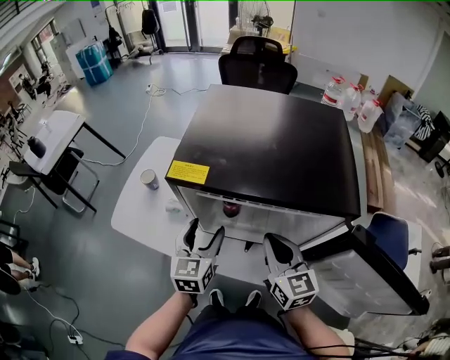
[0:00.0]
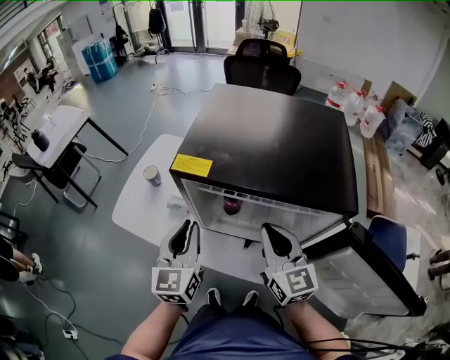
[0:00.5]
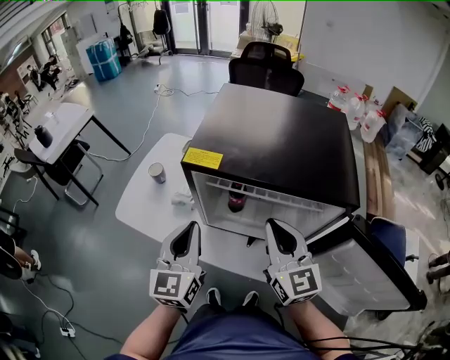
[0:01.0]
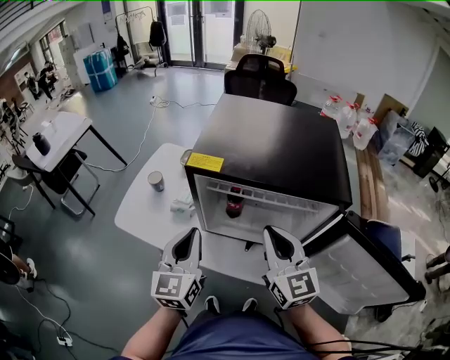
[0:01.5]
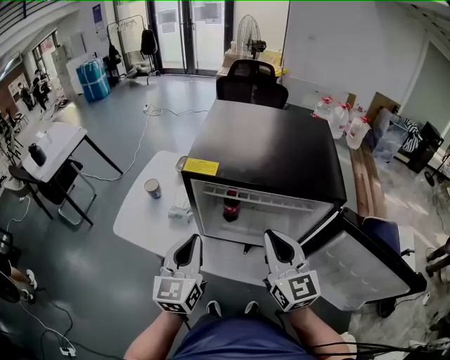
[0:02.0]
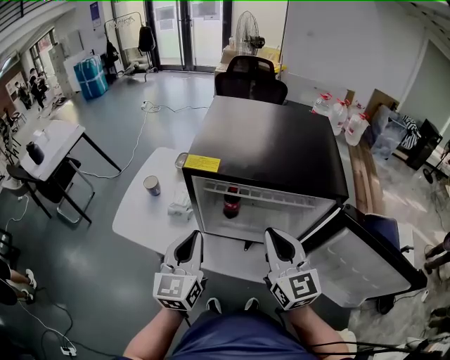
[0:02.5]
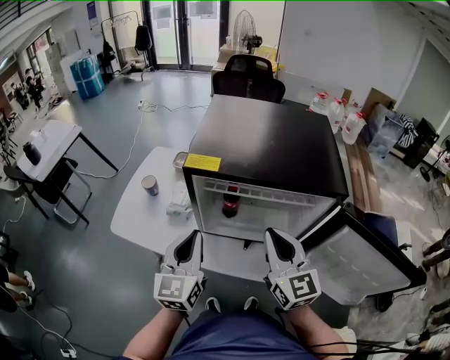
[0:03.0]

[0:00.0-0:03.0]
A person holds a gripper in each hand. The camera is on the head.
0:00.0 to 0:01.5: The right gripper travels upward by about 10 cm; the left gripper moves upward, backward and to the left, roughly 15 cm, and closes its fingers.
0:01.5 to 0:03.0: The two grippers keep their place.

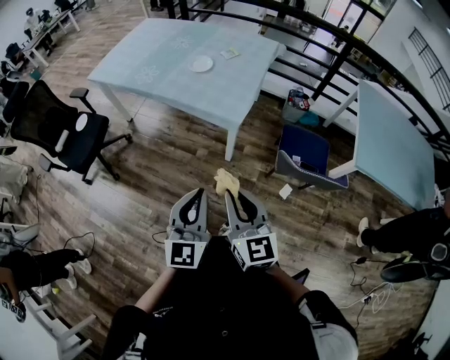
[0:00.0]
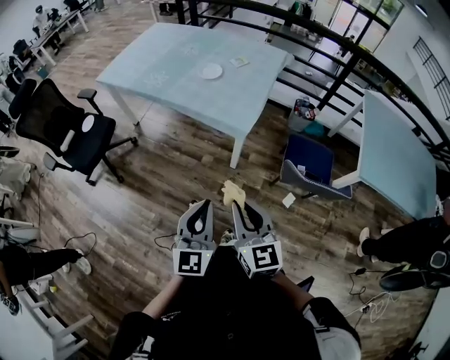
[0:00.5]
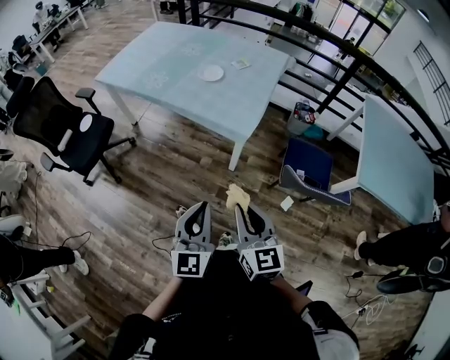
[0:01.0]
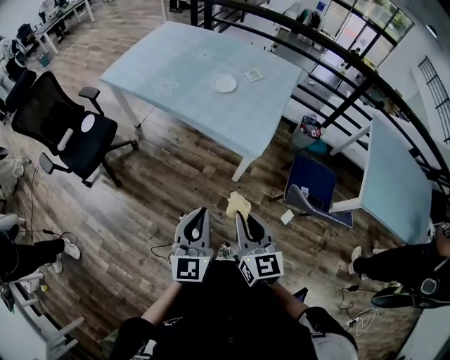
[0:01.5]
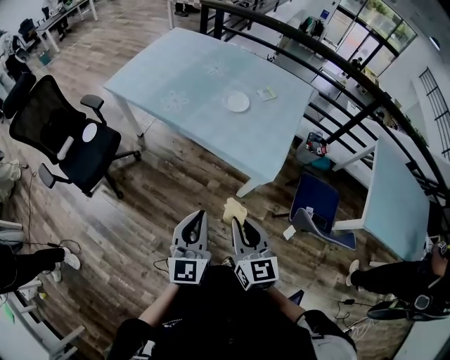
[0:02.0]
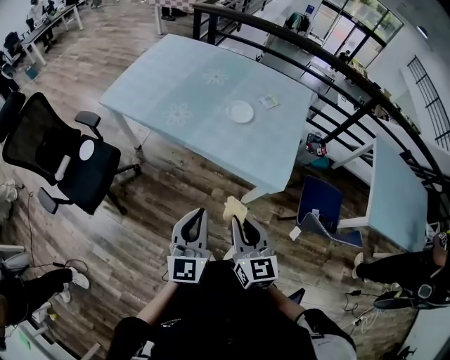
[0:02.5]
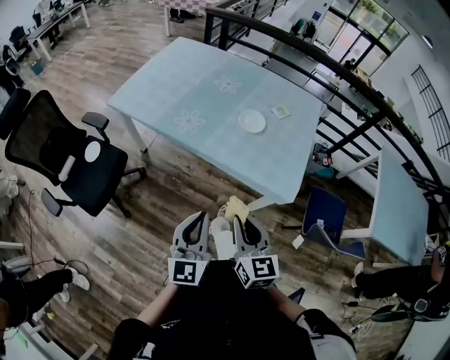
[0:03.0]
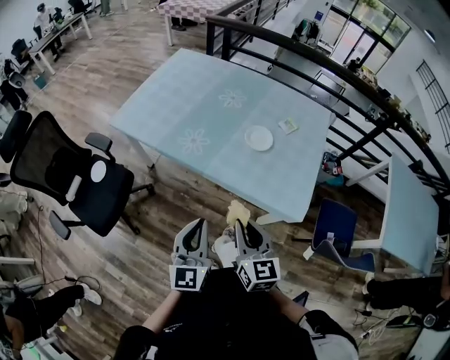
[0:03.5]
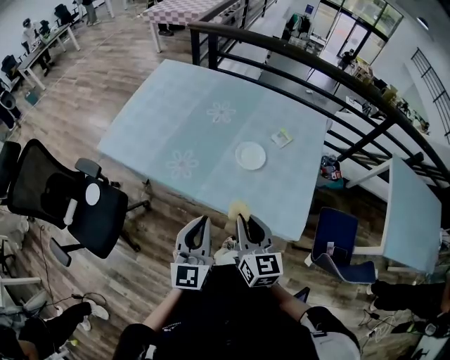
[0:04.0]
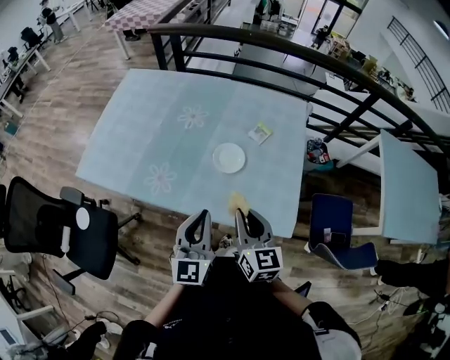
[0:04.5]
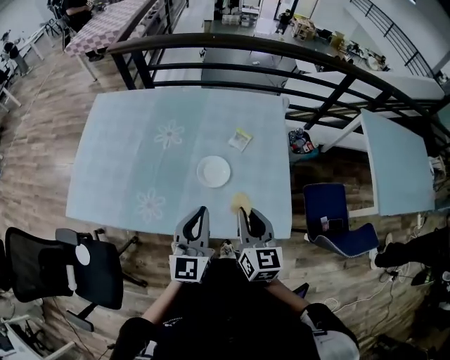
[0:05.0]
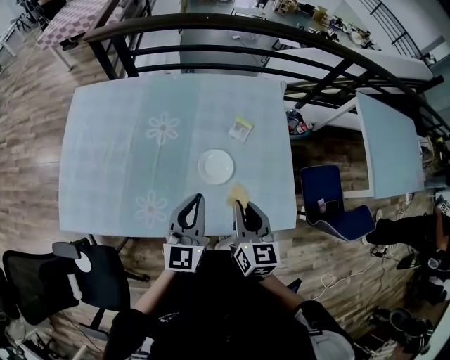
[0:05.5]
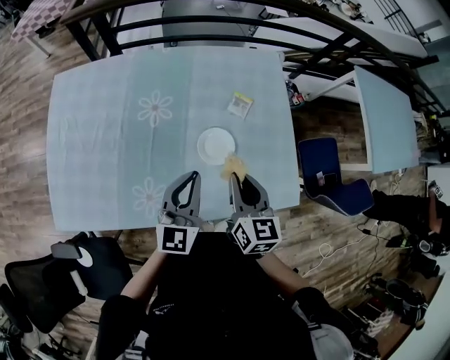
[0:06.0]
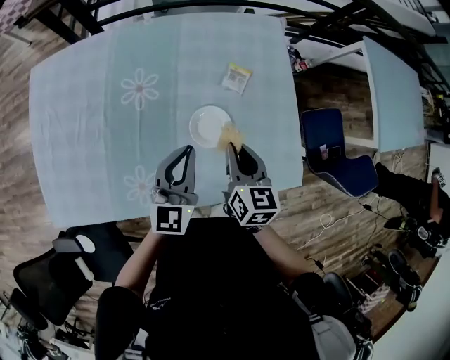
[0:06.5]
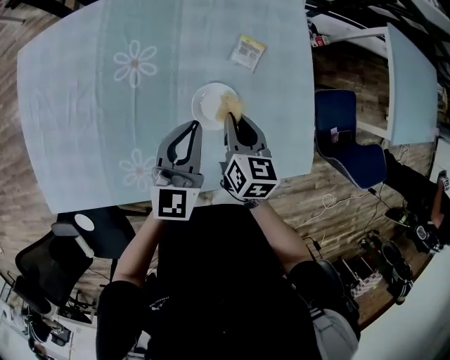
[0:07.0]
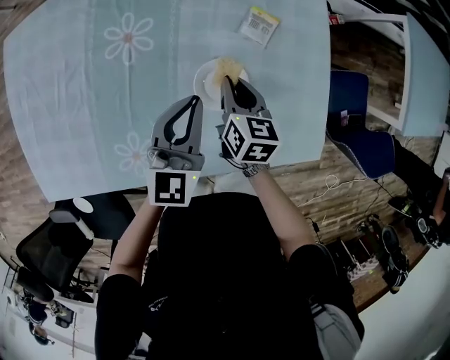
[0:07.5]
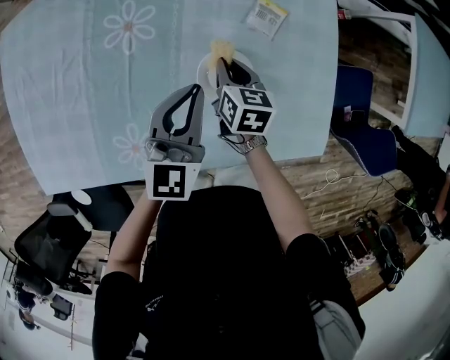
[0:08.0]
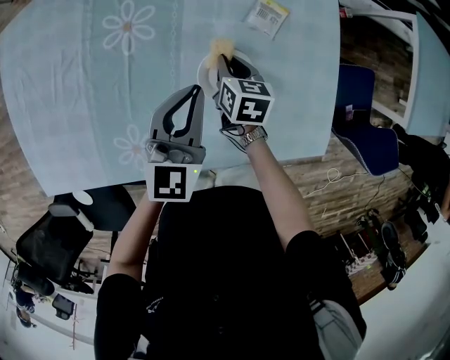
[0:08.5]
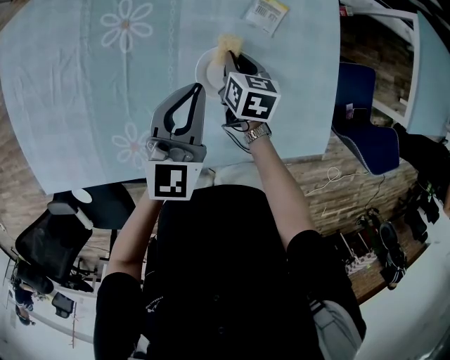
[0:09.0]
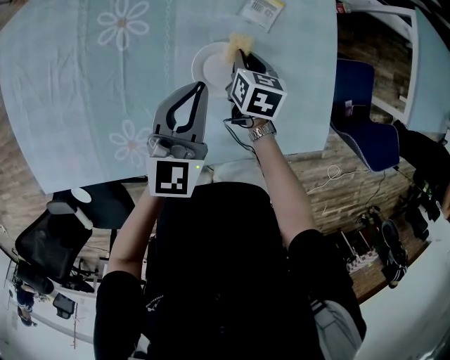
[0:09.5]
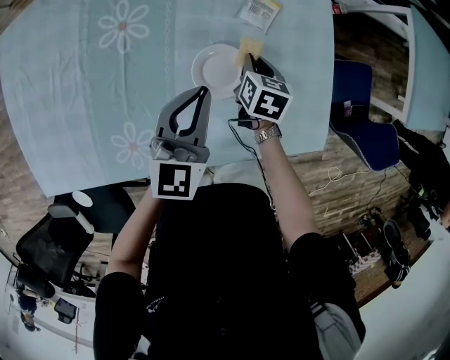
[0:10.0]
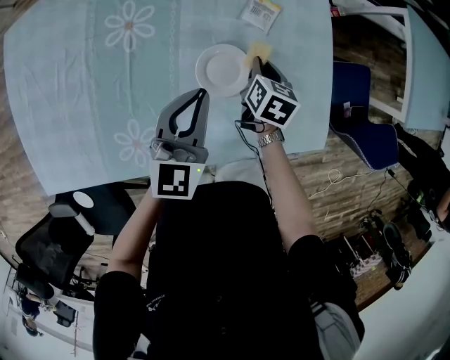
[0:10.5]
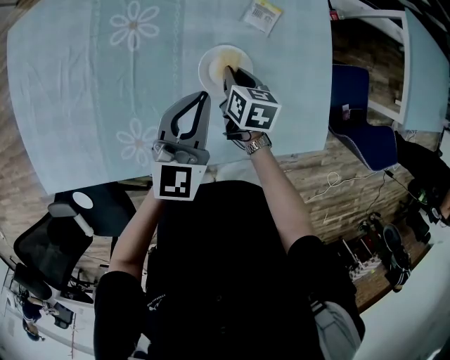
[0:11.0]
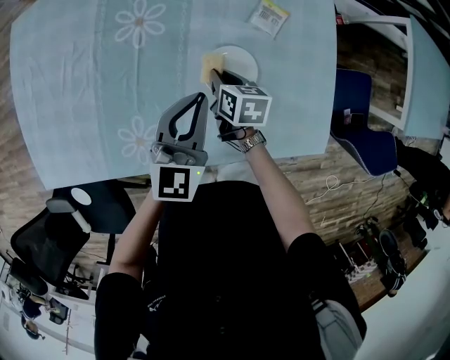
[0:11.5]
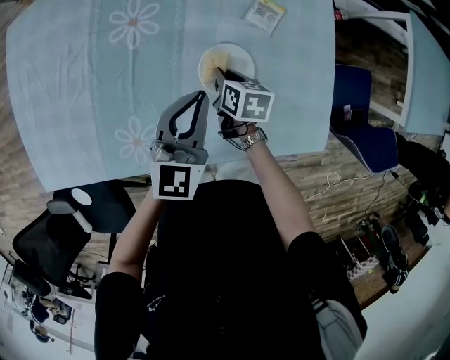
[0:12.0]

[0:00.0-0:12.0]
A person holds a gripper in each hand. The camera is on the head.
0:00.0 to 0:02.0: Both grippers travel together forward and to the left, about 20 cm.
0:02.0 to 0:04.0: Both grippers move forward, some 30 cm.
0:04.0 to 0:06.0: The left gripper moves approximately 30 cm, and turns by approximately 30 degrees, while the right gripper shifts by some 25 cm, and changes its angle by about 30 degrees.
0:06.0 to 0:08.0: The right gripper shifts approximately 30 cm downward and forward, and changes its angle by roughly 20 degrees. Meanwhile the left gripper is displaced downward and forward by about 15 cm.
0:08.0 to 0:10.0: The right gripper shifts some 10 cm to the right.
0:10.0 to 0:12.0: The right gripper heads to the left, covering roughly 10 cm.

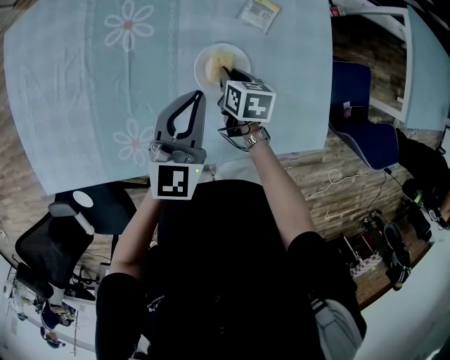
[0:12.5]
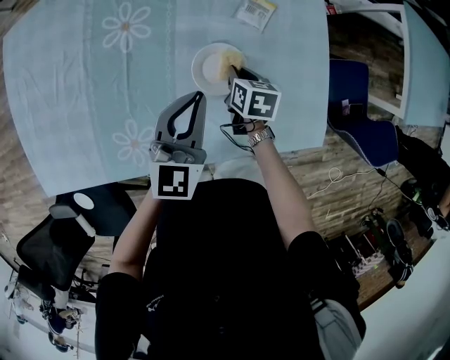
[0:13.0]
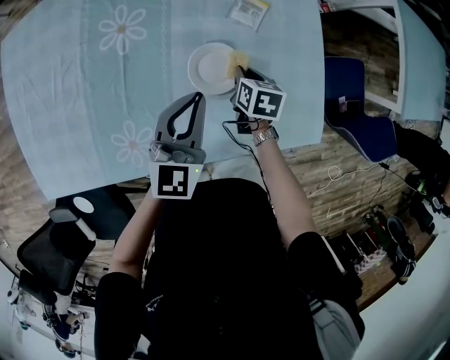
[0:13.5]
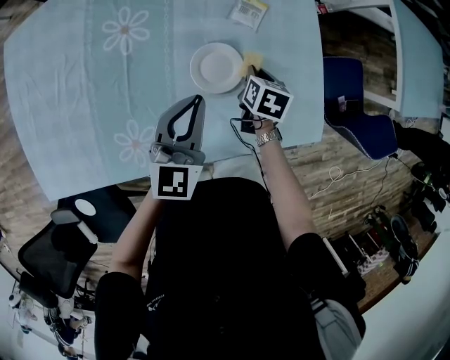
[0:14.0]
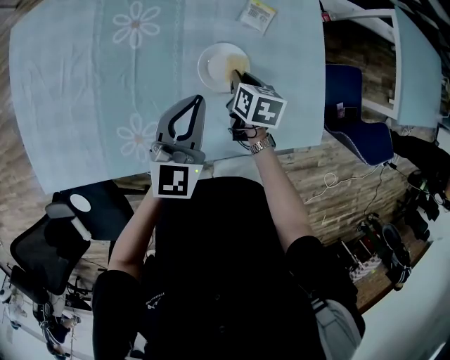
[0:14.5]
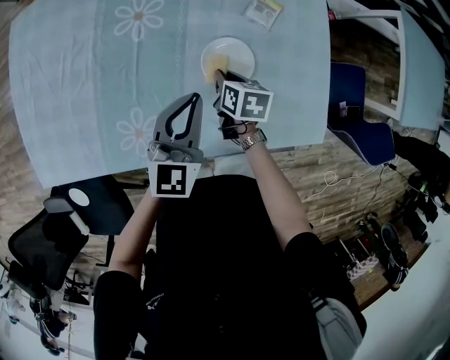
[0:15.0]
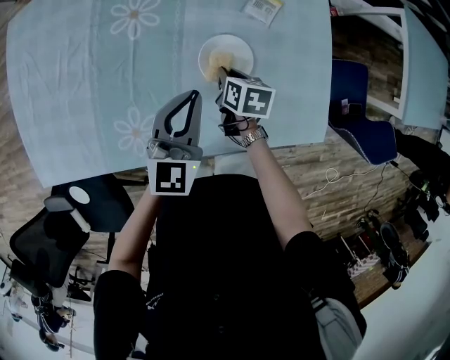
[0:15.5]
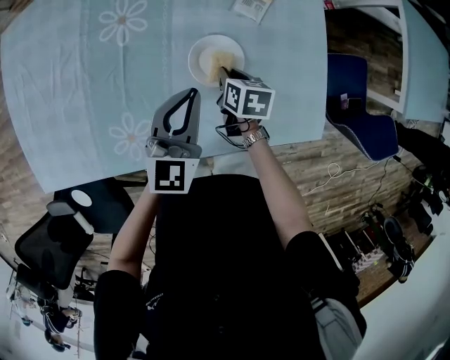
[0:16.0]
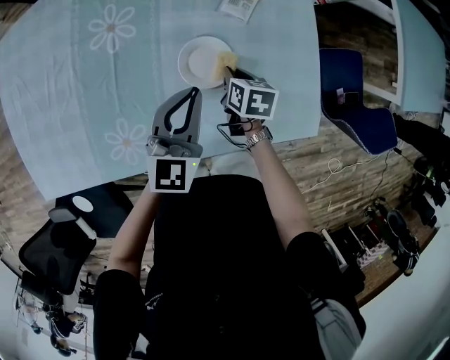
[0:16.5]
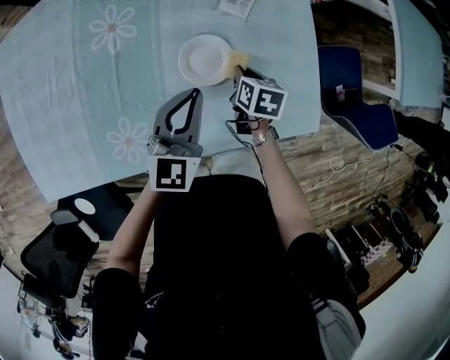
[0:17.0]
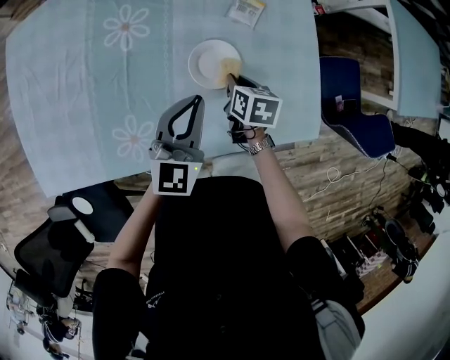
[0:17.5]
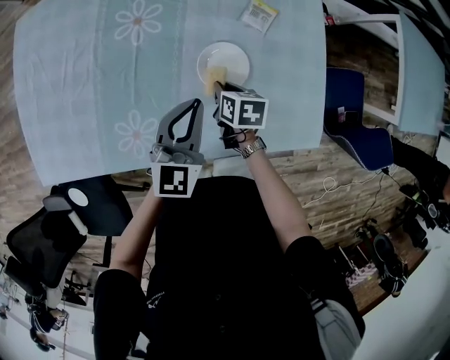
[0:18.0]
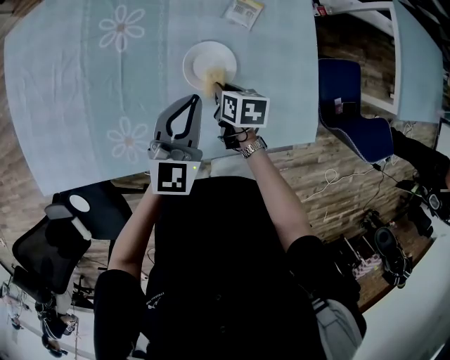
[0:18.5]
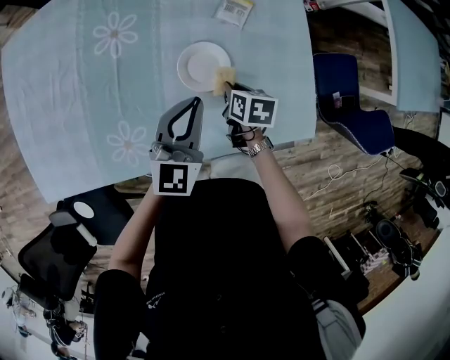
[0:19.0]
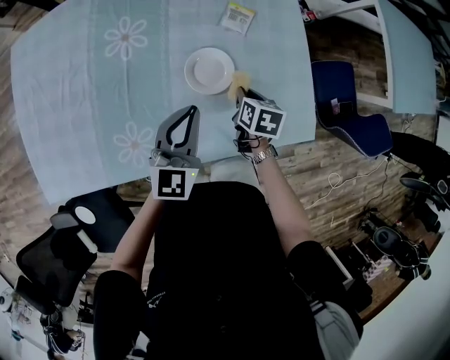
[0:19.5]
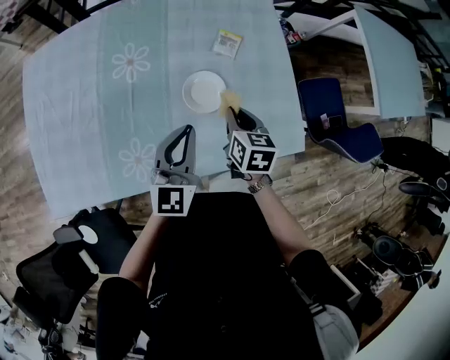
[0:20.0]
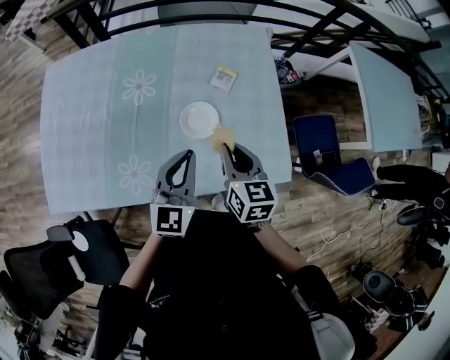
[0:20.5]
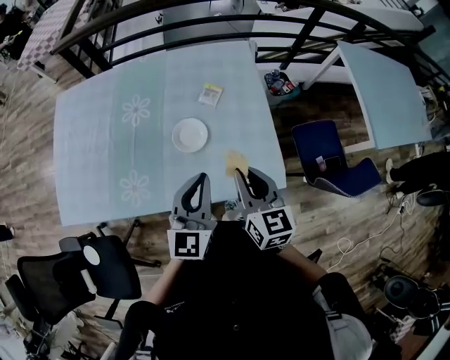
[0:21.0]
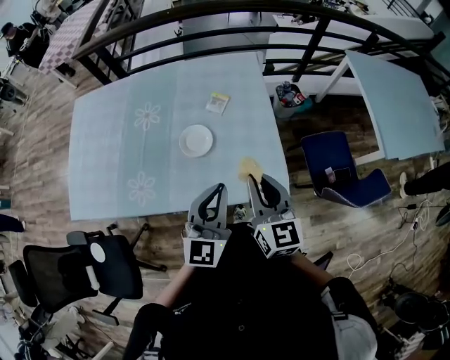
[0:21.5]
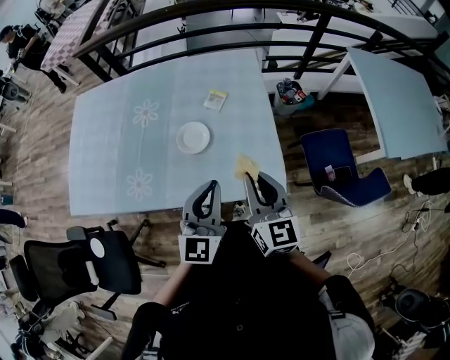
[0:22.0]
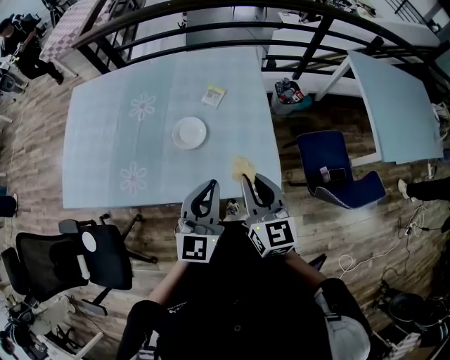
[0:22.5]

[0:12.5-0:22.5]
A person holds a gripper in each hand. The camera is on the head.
0:12.5 to 0:14.5: The right gripper goes to the right and returns, approximately 10 cm each way.
0:14.5 to 0:16.5: The left gripper changes place by approximately 5 cm.
0:18.5 to 0:20.5: The left gripper is displaced upward and backward by approximately 15 cm. The right gripper heads upward, covering about 25 cm, and swivels some 40 degrees.
0:20.5 to 0:22.5: The left gripper is displaced to the right and backward by some 20 cm; the right gripper is displaced to the right, backward and upward by some 20 cm.

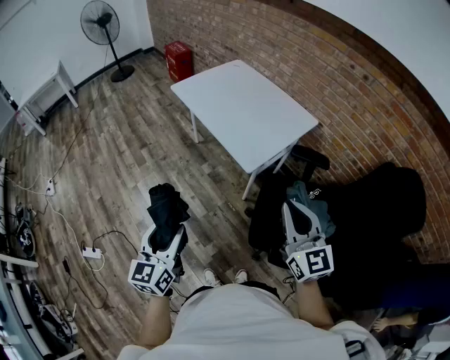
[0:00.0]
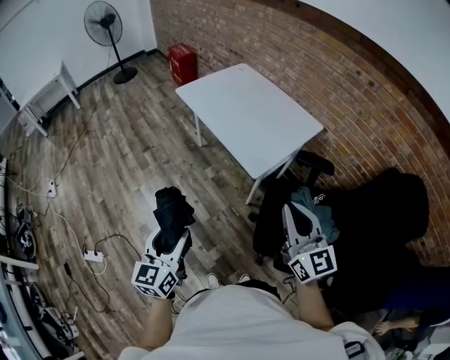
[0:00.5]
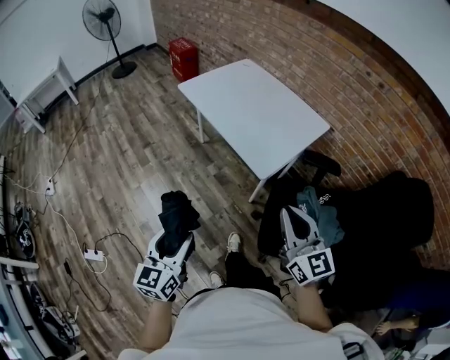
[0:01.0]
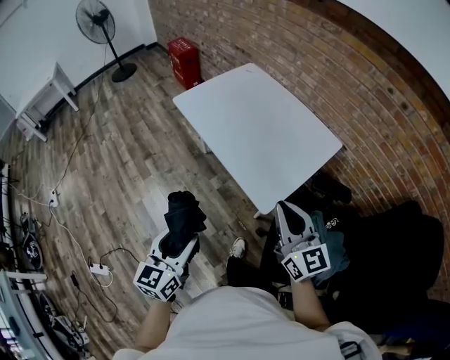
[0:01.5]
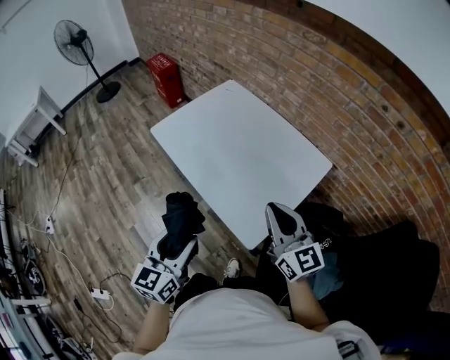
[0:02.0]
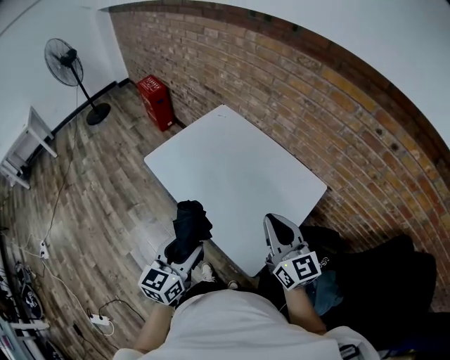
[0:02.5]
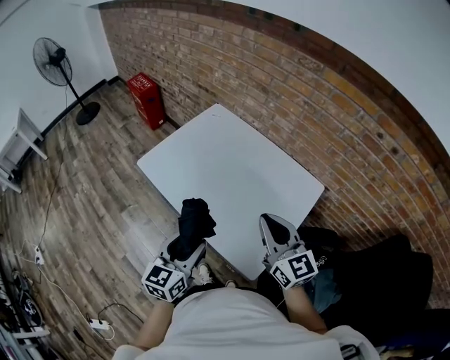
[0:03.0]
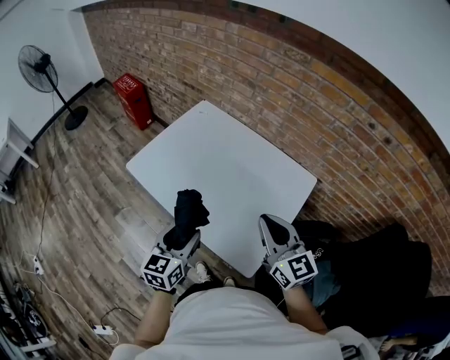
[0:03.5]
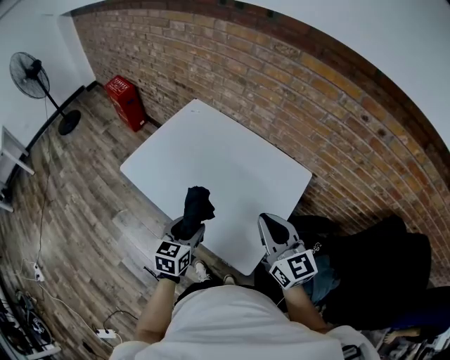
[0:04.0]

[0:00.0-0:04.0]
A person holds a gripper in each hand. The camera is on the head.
0:00.0 to 0:02.0: Both grippers move forward, about 35 cm.
0:02.0 to 0:04.0: The left gripper goes about 20 cm forward and downward, and changes its angle by roughly 20 degrees, while the right gripper travels forward by roughly 10 cm.
